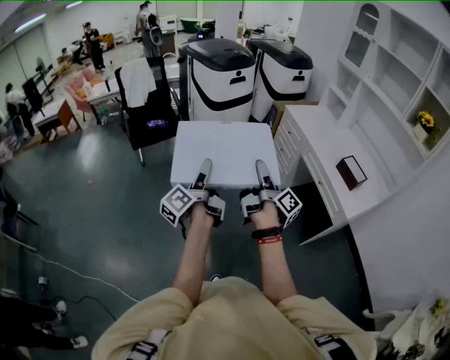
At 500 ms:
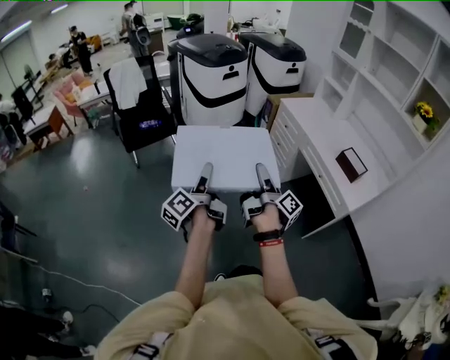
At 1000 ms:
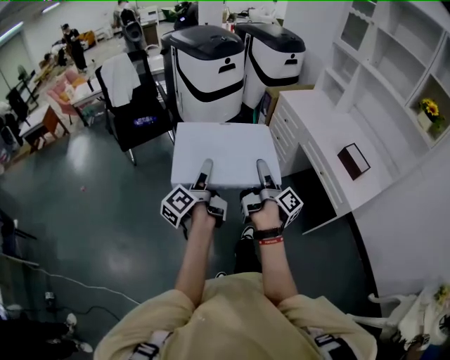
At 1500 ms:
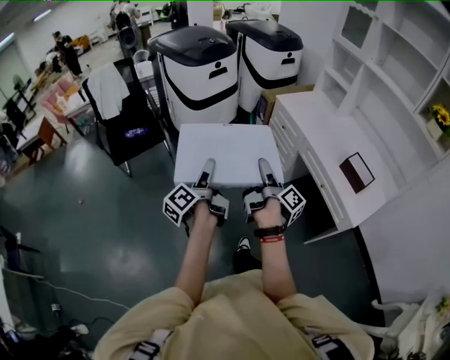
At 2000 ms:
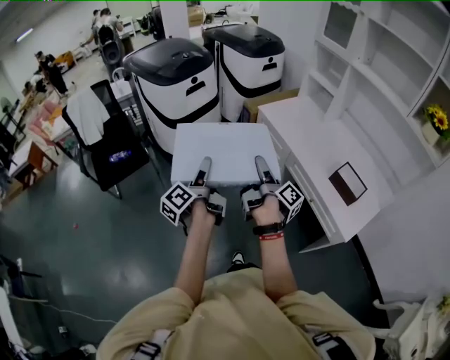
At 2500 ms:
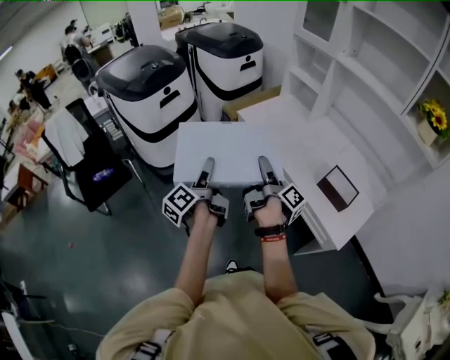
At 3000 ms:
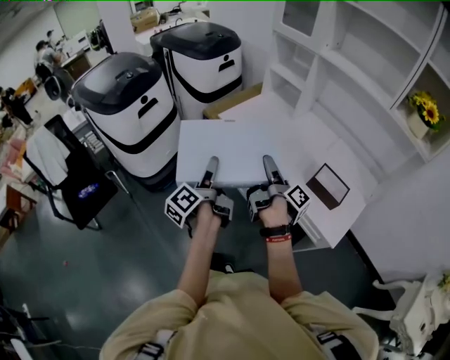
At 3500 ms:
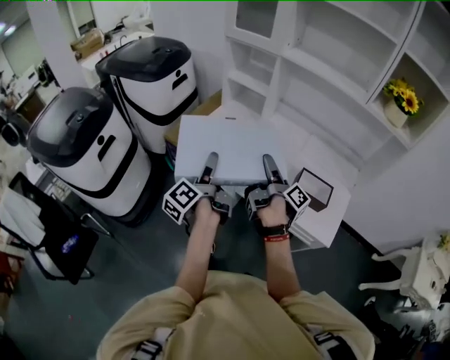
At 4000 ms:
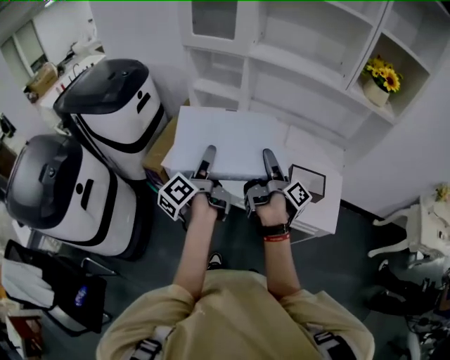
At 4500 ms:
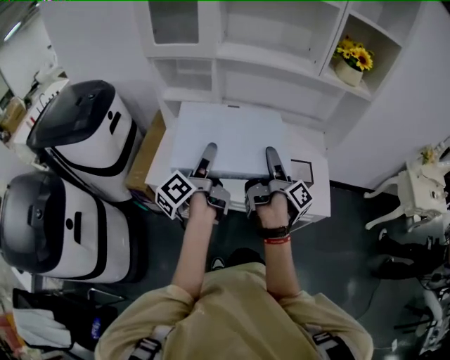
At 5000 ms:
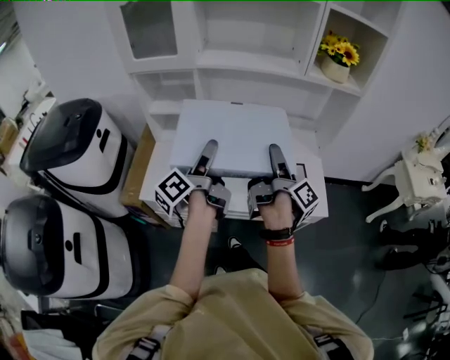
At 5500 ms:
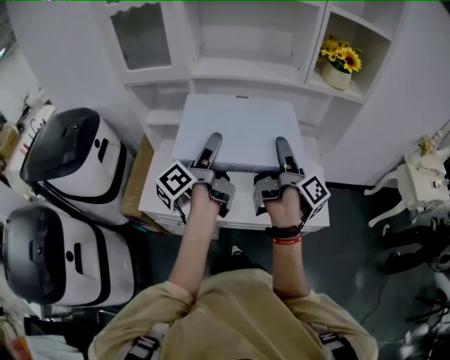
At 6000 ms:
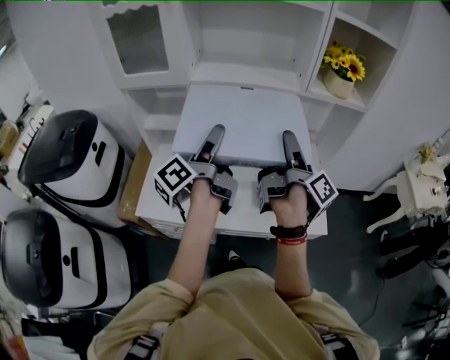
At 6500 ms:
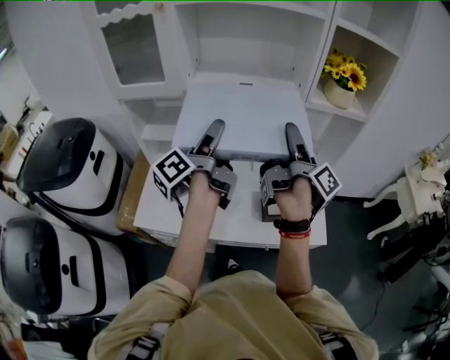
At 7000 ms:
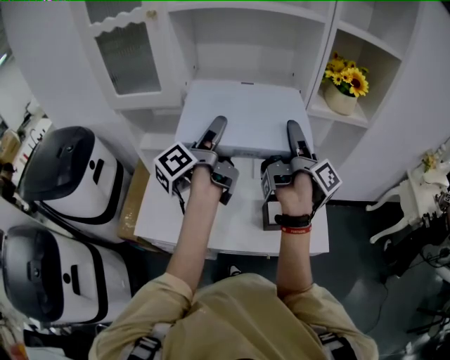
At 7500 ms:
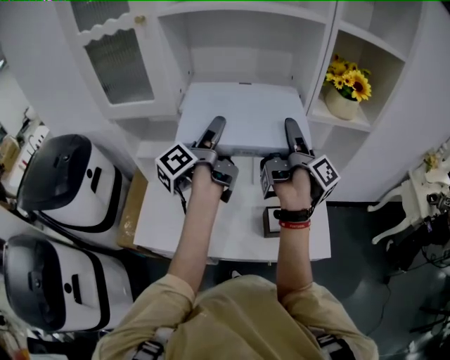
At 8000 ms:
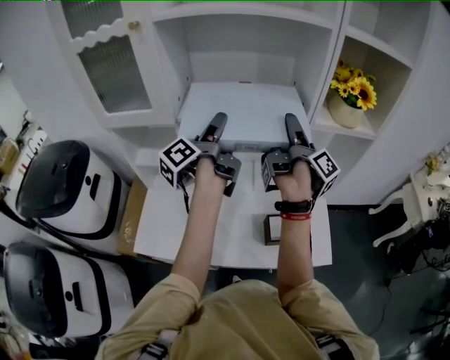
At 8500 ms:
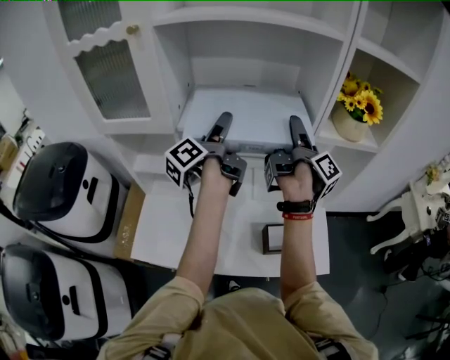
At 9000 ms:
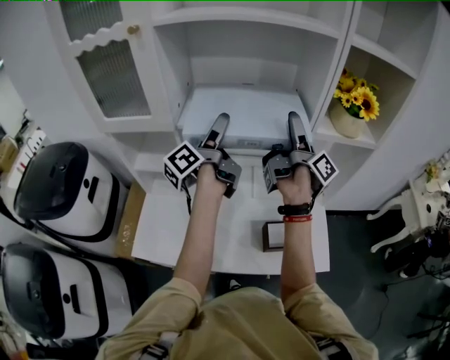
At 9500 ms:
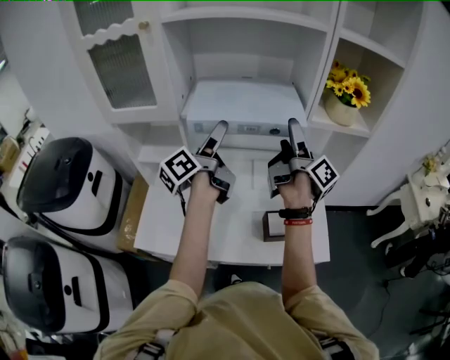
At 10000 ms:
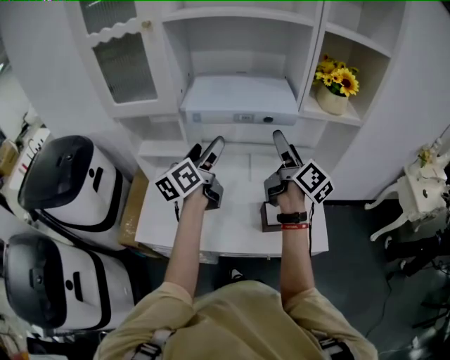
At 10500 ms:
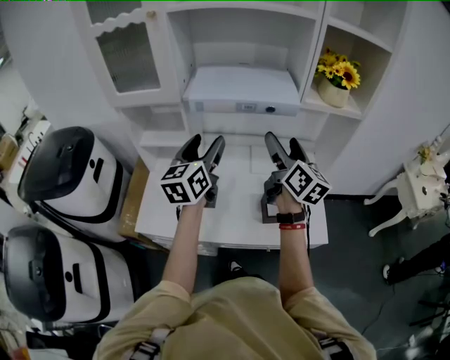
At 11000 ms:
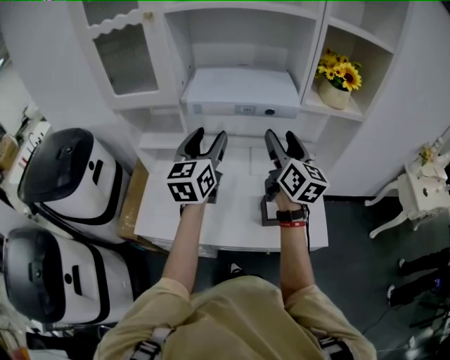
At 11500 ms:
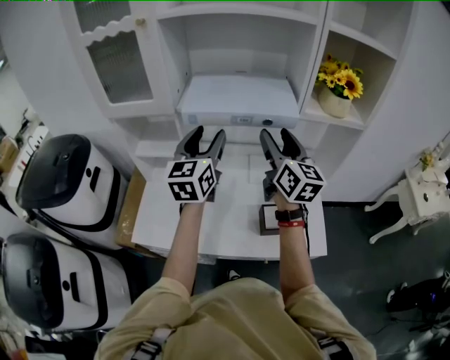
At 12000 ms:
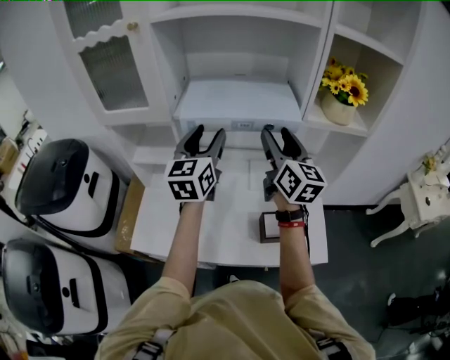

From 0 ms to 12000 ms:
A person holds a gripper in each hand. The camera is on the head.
From 0 ms to 2000 ms: Both grippers travel together forward and to the right, about 35 cm.
From 2000 ms to 4000 ms: The left gripper shifts by approximately 50 cm, and changes its angle by approximately 50 degrees, while the right gripper ends up some 40 cm from where it was, and rotates approximately 50 degrees.
From 4000 ms to 6000 ms: The right gripper moves upward, to the right and forward, roughly 20 cm, and changes its angle by about 20 degrees. The left gripper travels forward, upward and to the right by roughly 25 cm, and turns by some 20 degrees.
From 6000 ms to 8000 ms: Both grippers travel together forward, approximately 20 cm.
From 8000 ms to 10000 ms: The two grippers go about 10 cm backward. The left gripper rolls clockwise, seen from behind, by roughly 40 degrees, while the right gripper twists about 40 degrees counterclockwise, seen from behind.
From 10000 ms to 12000 ms: Both grippers move forward, about 5 cm. The right gripper rotates approximately 40 degrees, and closes its fingers, while the left gripper rotates some 30 degrees, and closes.

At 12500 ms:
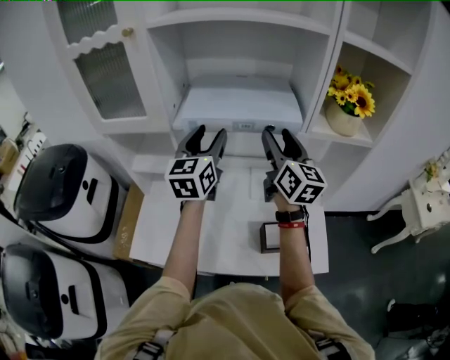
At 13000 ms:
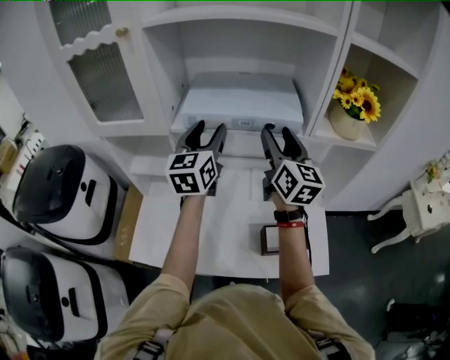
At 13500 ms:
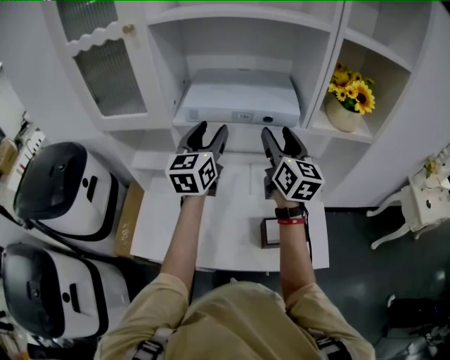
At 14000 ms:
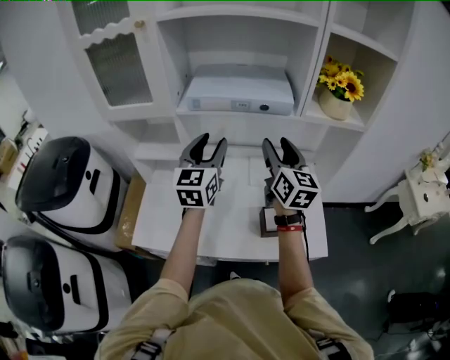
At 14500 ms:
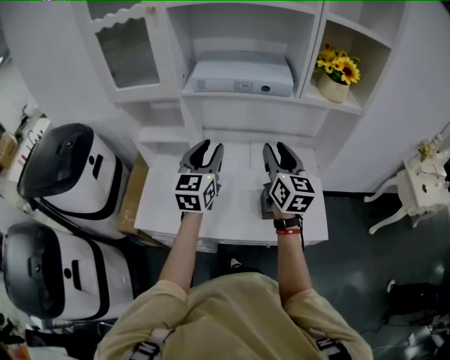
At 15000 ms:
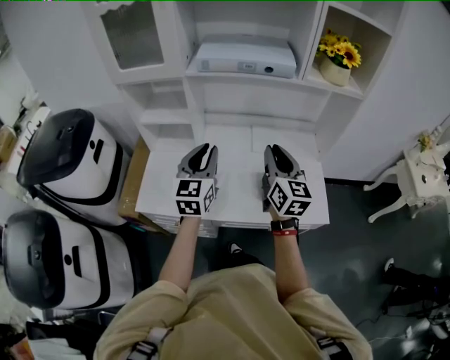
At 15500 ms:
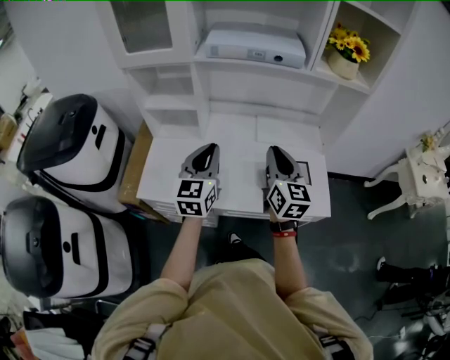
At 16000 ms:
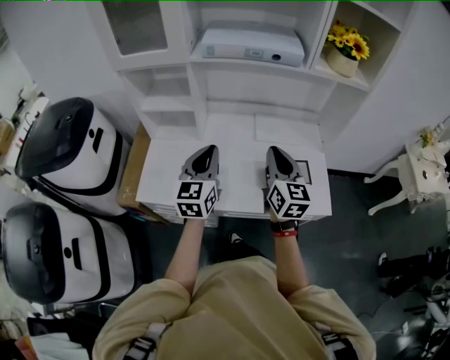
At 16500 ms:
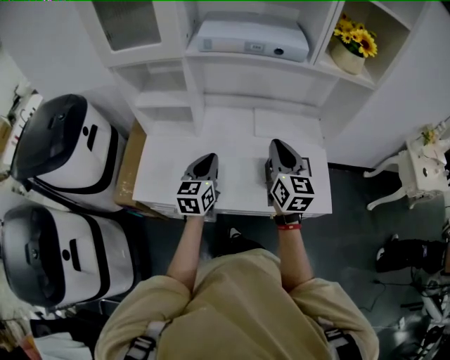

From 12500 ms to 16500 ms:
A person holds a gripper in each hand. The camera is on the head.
From 12500 ms to 14500 ms: Both grippers travel together backward and downward, some 15 cm.
From 14500 ms to 16500 ms: The left gripper moves downward, about 15 cm. Meanwhile the right gripper goes some 10 cm downward.

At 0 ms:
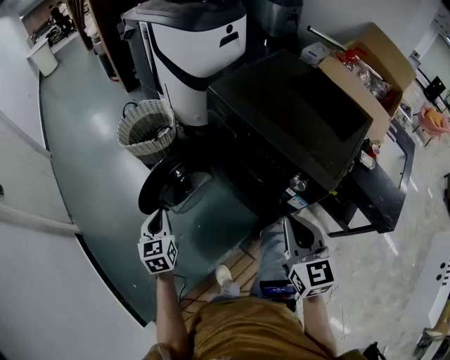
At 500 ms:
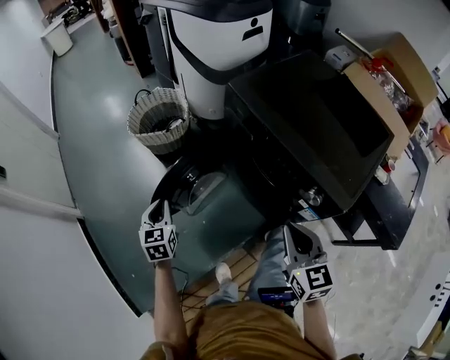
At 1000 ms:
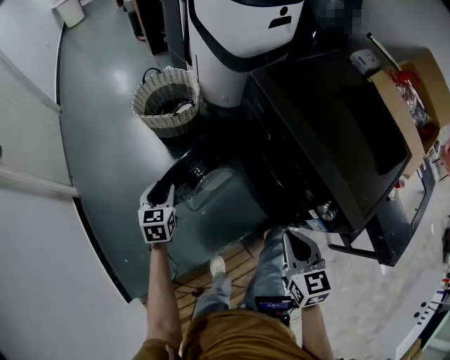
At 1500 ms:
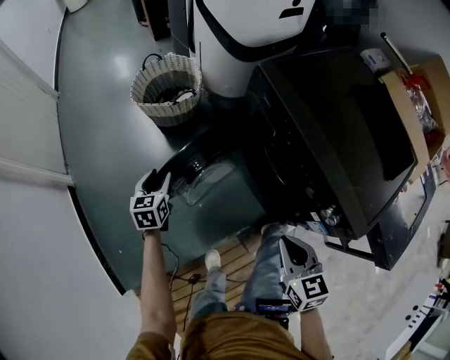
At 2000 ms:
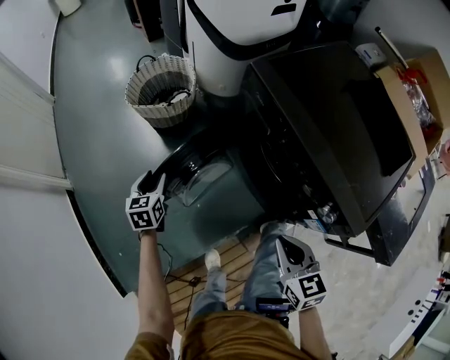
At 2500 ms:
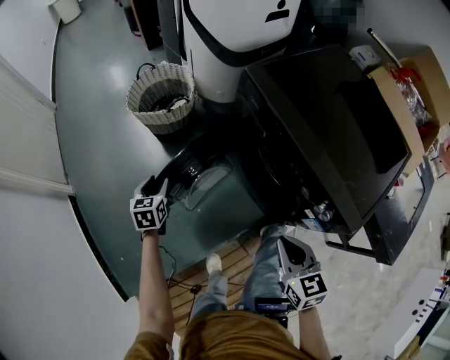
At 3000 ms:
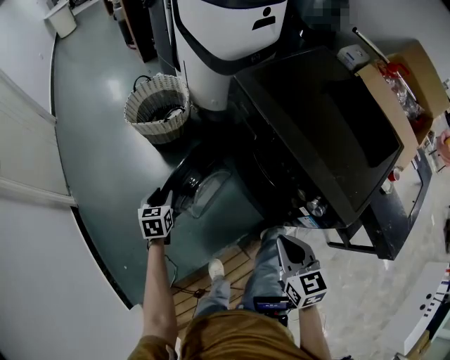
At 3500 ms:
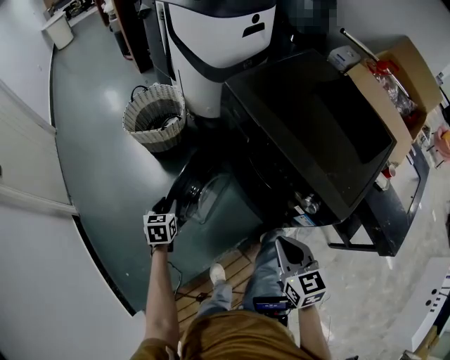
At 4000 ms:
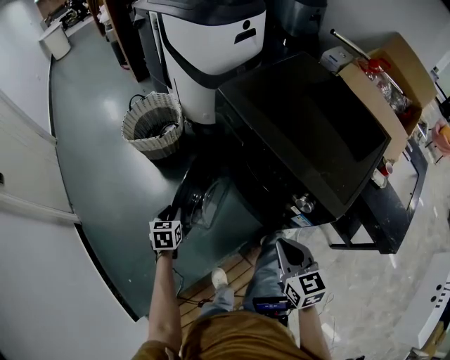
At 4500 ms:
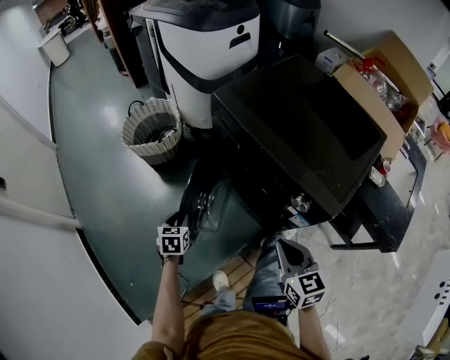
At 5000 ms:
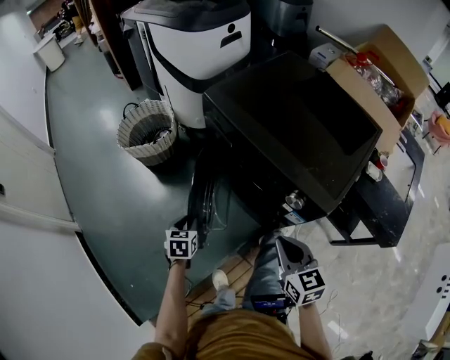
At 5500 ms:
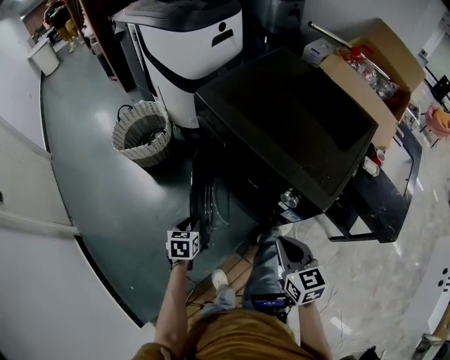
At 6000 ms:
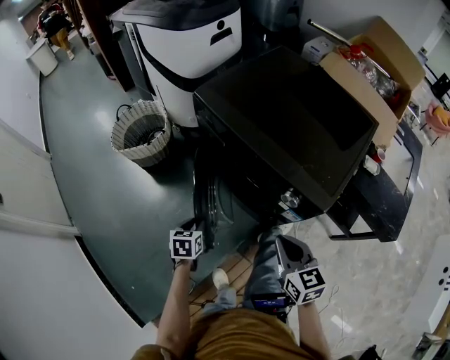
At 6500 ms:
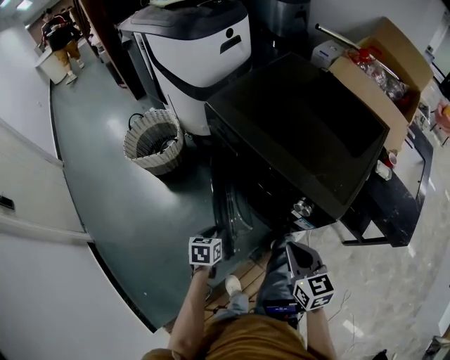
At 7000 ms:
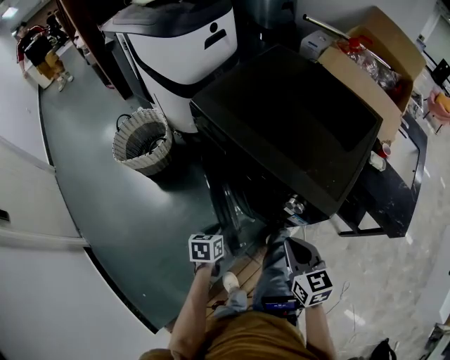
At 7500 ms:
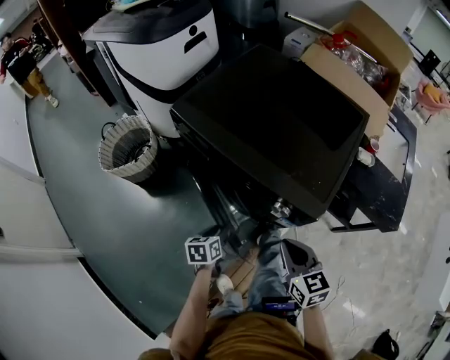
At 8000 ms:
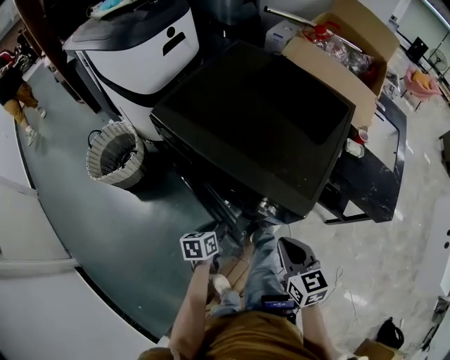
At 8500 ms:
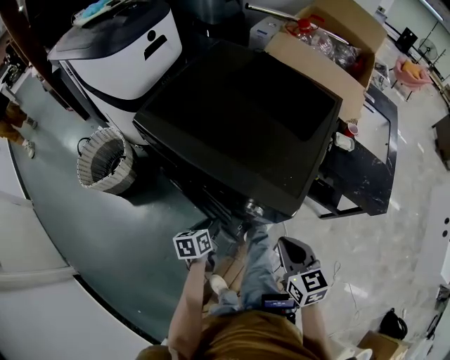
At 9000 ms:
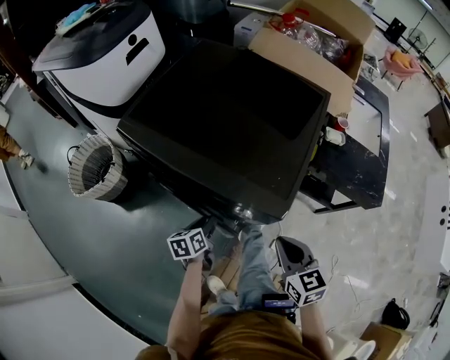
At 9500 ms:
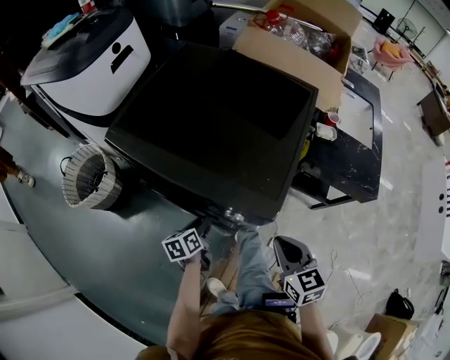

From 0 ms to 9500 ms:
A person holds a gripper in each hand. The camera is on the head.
From 0 ms to 2000 ms: The left gripper moves forward and downward, approximately 20 cm, and opens its fingers. Meanwhile the right gripper heads downward and forward, covering roughly 15 cm, and swivels roughly 20 degrees.
From 2000 ms to 4000 ms: The left gripper is displaced backward and to the right by some 10 cm; the right gripper ends up roughly 5 cm from where it was.
From 4000 ms to 5500 ms: The left gripper travels to the right by approximately 10 cm.
From 5500 ms to 7500 ms: The left gripper moves to the right, some 15 cm, and rotates roughly 20 degrees.
From 7500 ms to 9500 ms: The right gripper moves to the right, approximately 10 cm; the left gripper shifts some 10 cm forward and to the right.

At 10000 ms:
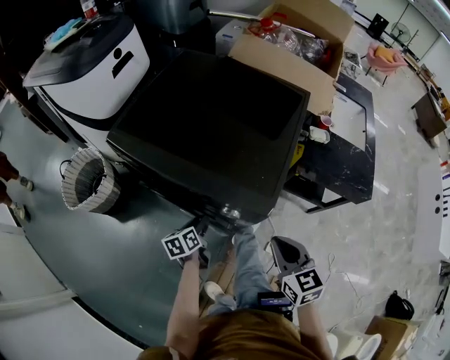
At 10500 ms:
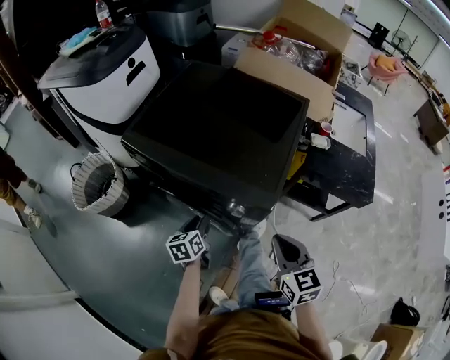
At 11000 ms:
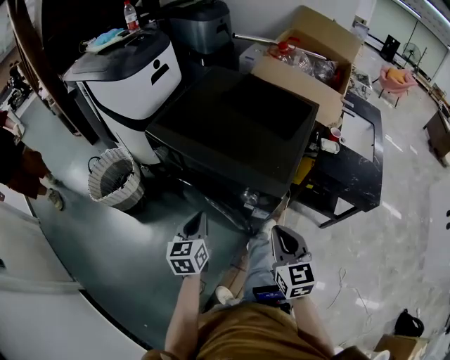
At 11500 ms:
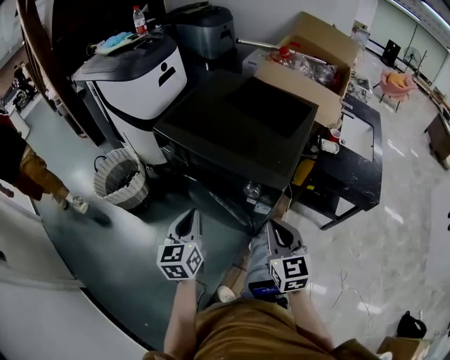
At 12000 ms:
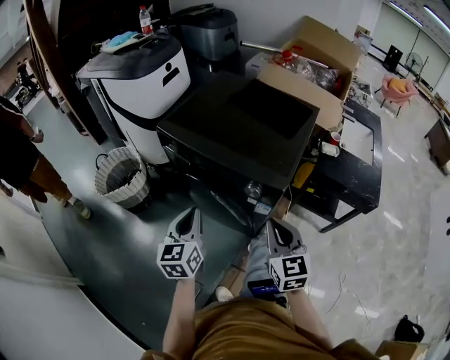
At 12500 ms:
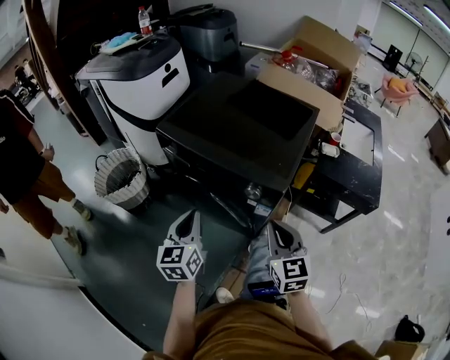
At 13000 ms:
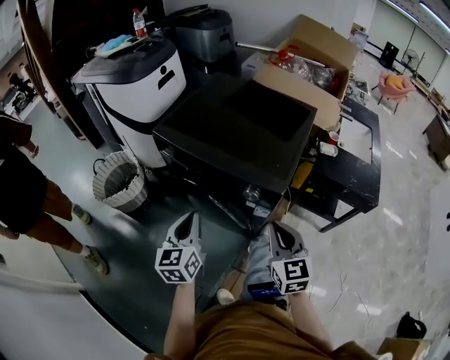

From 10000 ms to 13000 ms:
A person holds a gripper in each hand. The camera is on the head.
From 10000 ms to 11500 ms: The left gripper heads upward and backward, covering approximately 30 cm, changes its angle by roughly 40 degrees, and closes its fingers. Meanwhile the right gripper is displaced to the left, upward and backward by roughly 10 cm.
From 11500 ms to 13000 ms: Neither gripper changes place.
